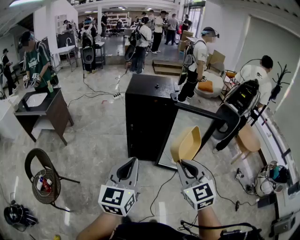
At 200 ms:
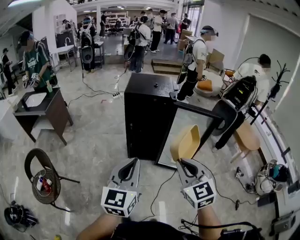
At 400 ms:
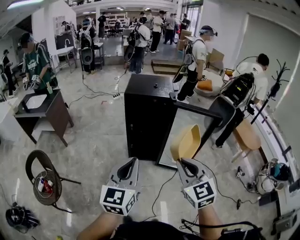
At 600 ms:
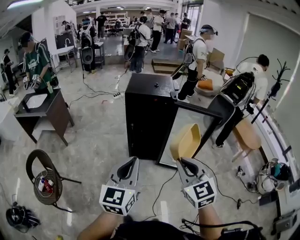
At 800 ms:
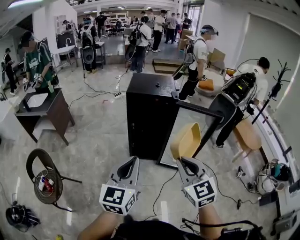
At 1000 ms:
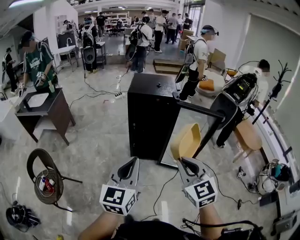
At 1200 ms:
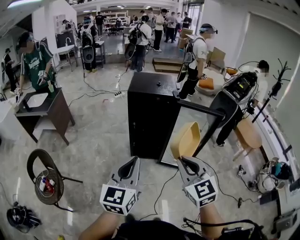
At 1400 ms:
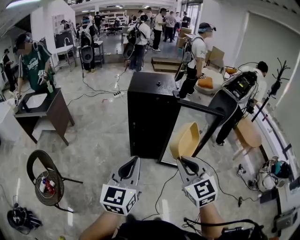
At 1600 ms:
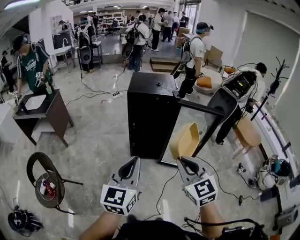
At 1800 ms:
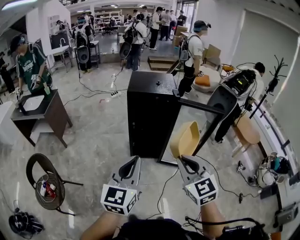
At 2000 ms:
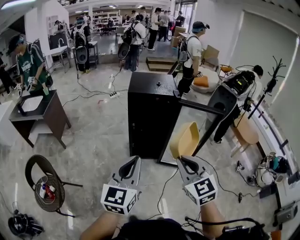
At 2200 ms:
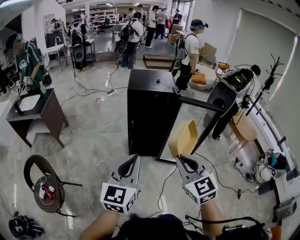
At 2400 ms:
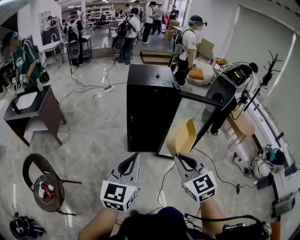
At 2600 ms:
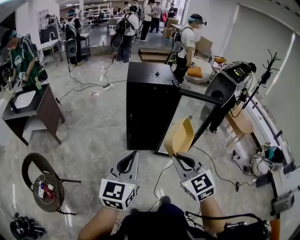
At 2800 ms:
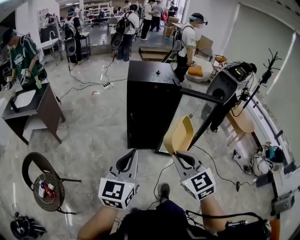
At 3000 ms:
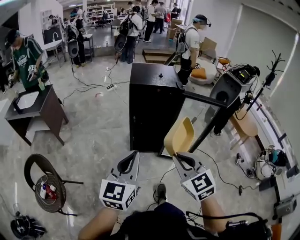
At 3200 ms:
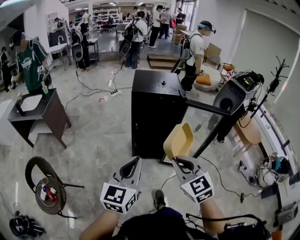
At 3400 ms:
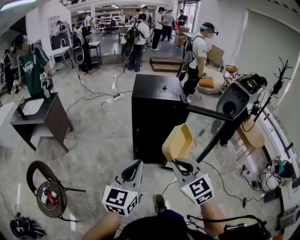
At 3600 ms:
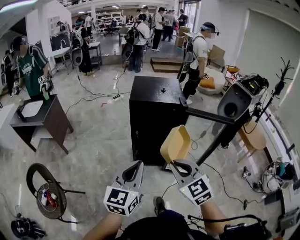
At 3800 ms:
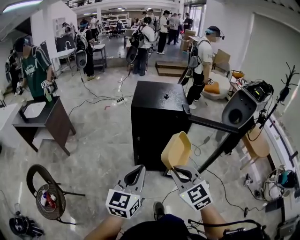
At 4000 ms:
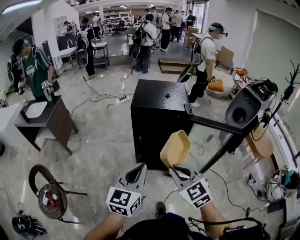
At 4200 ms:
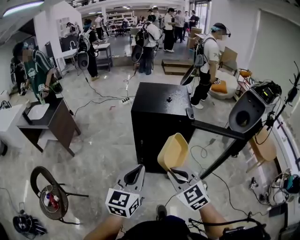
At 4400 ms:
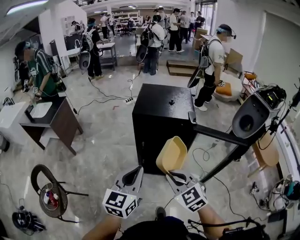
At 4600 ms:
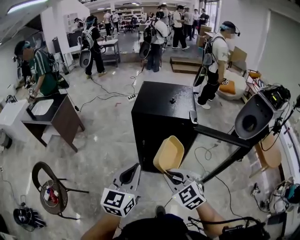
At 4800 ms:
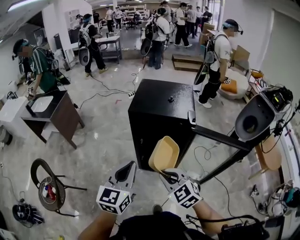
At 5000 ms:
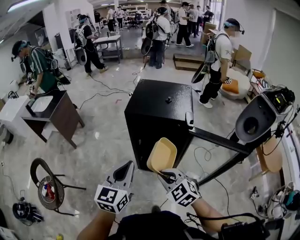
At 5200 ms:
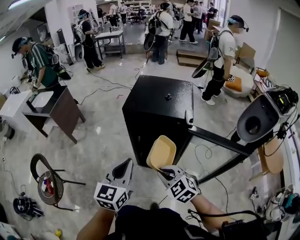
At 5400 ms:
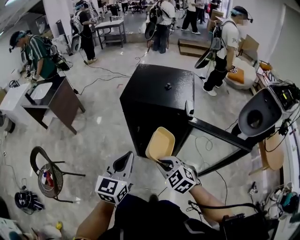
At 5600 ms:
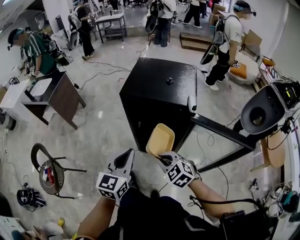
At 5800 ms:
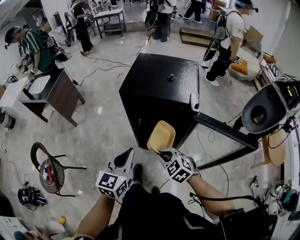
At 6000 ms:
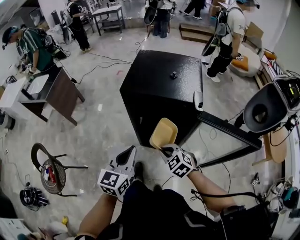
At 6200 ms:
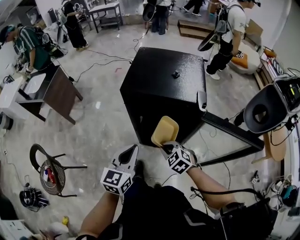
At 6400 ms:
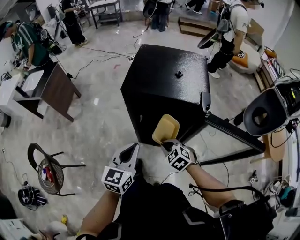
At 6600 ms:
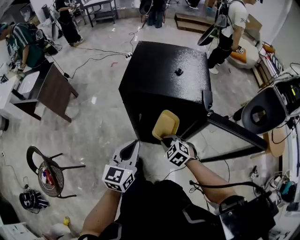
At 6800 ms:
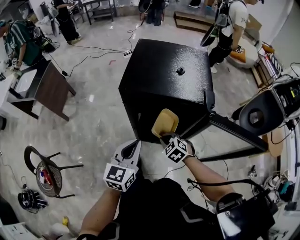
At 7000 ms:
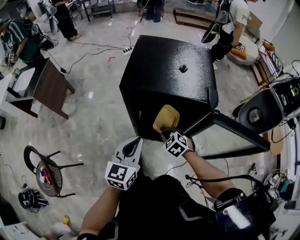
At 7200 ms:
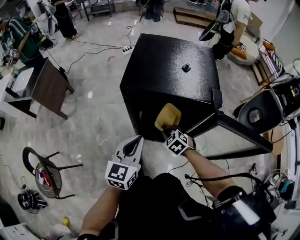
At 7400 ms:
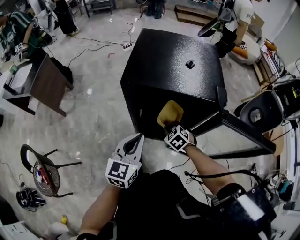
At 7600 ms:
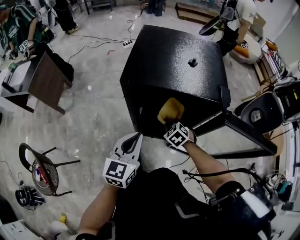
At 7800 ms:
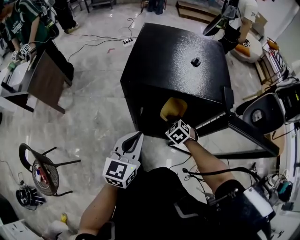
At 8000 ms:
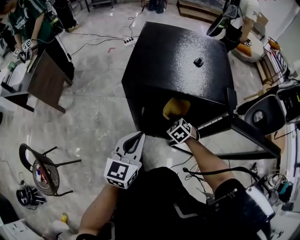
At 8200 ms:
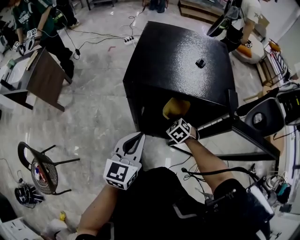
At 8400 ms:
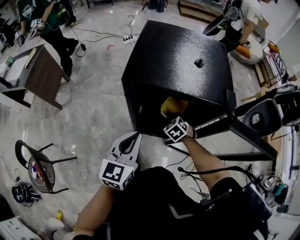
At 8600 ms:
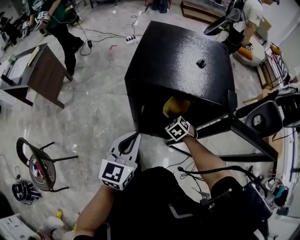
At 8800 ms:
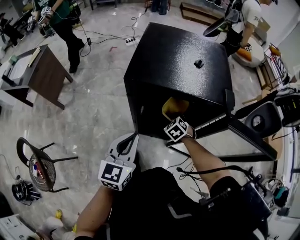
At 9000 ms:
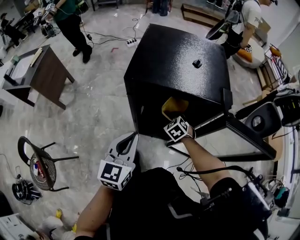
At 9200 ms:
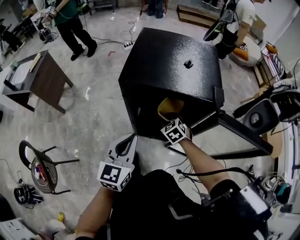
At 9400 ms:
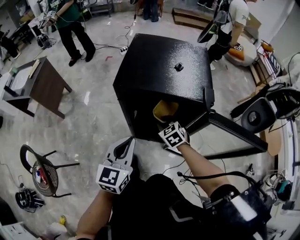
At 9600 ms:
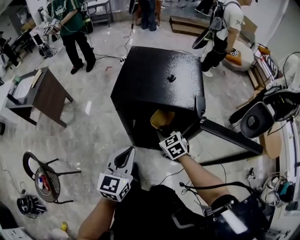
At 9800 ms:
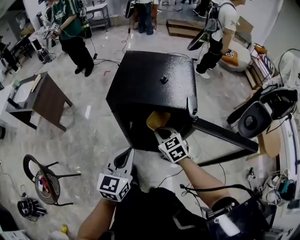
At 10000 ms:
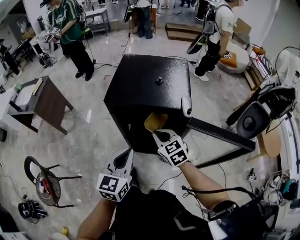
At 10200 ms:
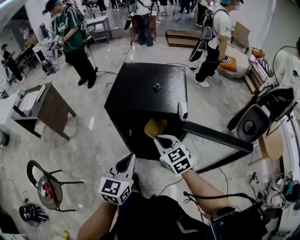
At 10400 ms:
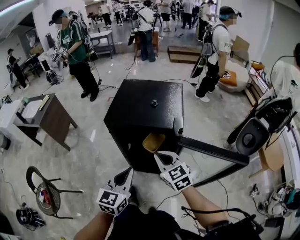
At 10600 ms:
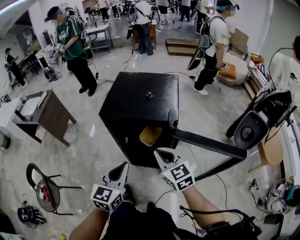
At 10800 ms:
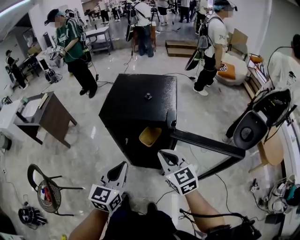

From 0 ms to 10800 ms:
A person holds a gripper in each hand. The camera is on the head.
From 0 ms to 1600 ms: The grippers stay close to where they were, moving slightly.
From 1600 ms to 3000 ms: The two grippers go some 5 cm to the left.
From 3000 ms to 4600 ms: The right gripper travels forward by approximately 20 cm, and rotates about 20 degrees, while the left gripper moves forward and to the right, approximately 20 cm.
From 4600 ms to 6200 ms: The two grippers go some 20 cm downward and forward. The right gripper changes its angle by approximately 20 degrees.
From 6200 ms to 7800 ms: The right gripper shifts roughly 20 cm forward and downward, while the left gripper heads forward and downward, covering some 10 cm.
From 7800 ms to 9200 ms: The right gripper opens.
From 9200 ms to 10800 ms: The left gripper moves upward, to the right and backward, some 15 cm. Meanwhile the right gripper is displaced upward and backward by some 30 cm, tilts its fingers about 30 degrees upward, and closes.

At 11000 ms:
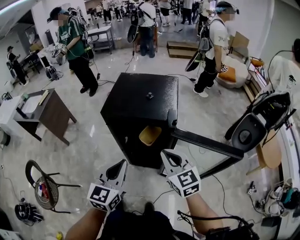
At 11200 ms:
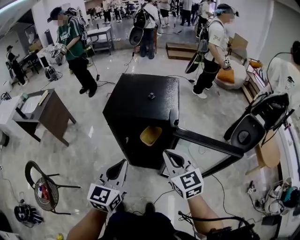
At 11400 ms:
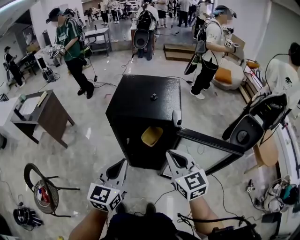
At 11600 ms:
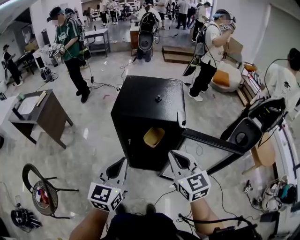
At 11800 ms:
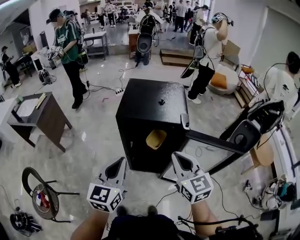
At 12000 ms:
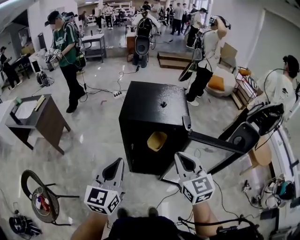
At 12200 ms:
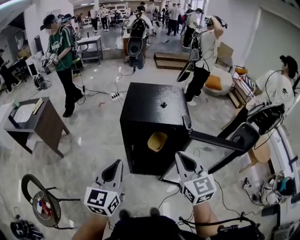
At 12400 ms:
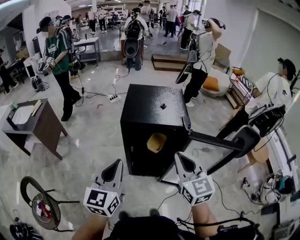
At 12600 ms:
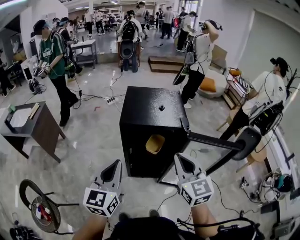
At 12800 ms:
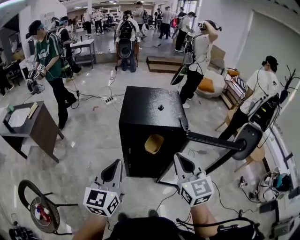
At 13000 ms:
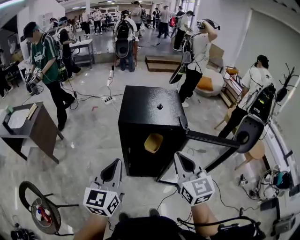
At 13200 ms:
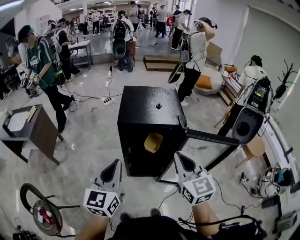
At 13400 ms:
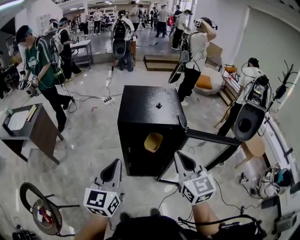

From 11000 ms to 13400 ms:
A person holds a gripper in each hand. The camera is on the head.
From 11000 ms to 12200 ms: The left gripper is displaced to the left by roughly 15 cm. The right gripper travels upward and to the left by about 10 cm.
From 12200 ms to 13400 ms: The grippers move only a little.

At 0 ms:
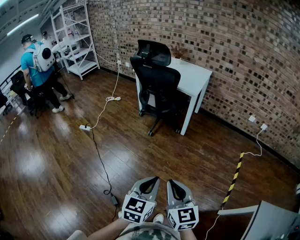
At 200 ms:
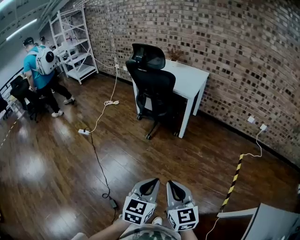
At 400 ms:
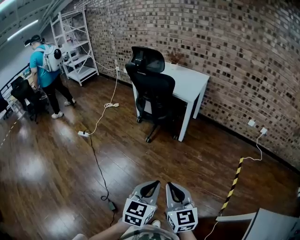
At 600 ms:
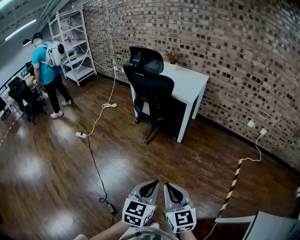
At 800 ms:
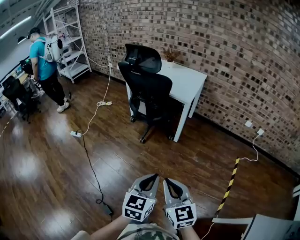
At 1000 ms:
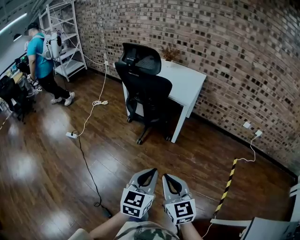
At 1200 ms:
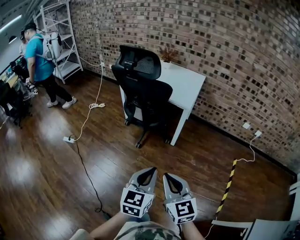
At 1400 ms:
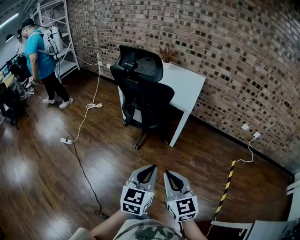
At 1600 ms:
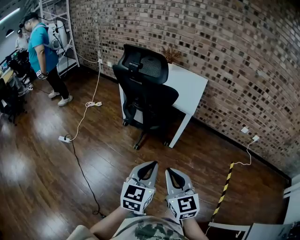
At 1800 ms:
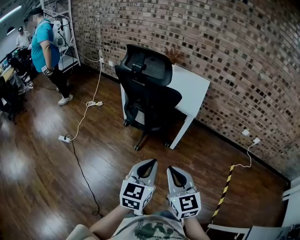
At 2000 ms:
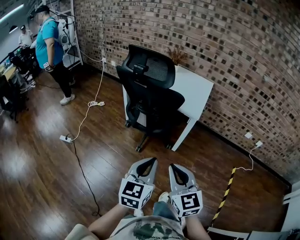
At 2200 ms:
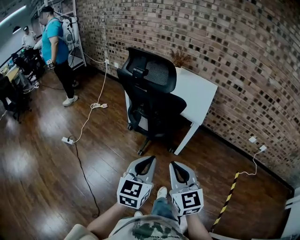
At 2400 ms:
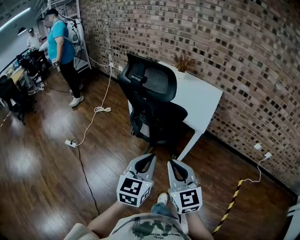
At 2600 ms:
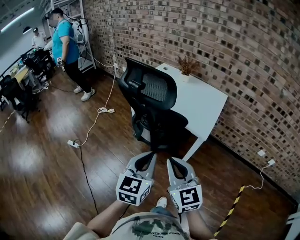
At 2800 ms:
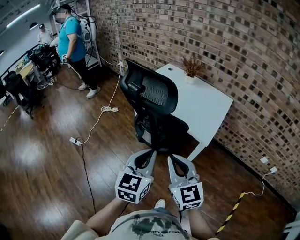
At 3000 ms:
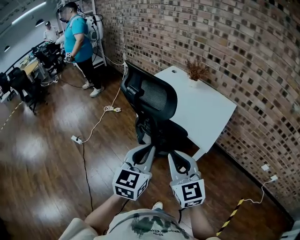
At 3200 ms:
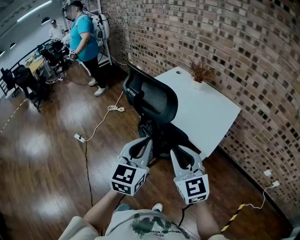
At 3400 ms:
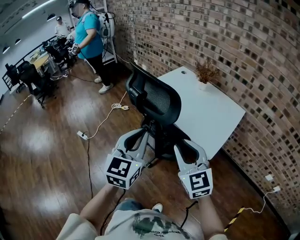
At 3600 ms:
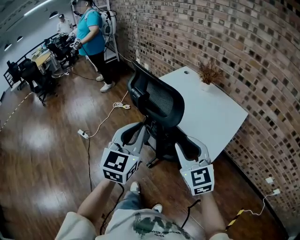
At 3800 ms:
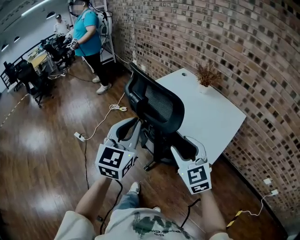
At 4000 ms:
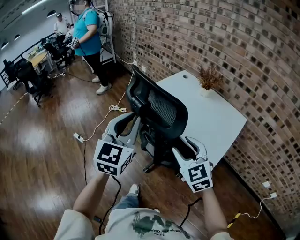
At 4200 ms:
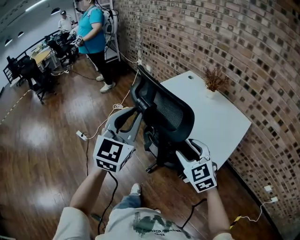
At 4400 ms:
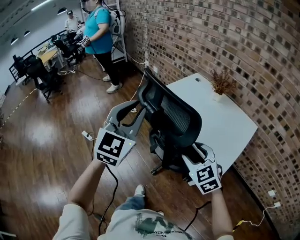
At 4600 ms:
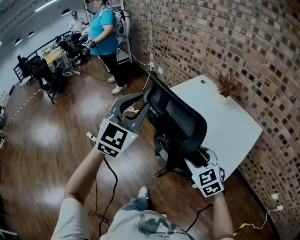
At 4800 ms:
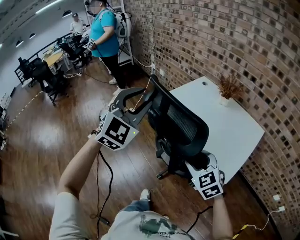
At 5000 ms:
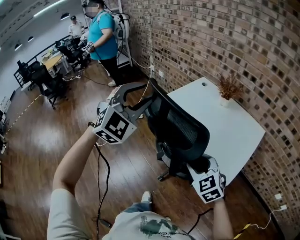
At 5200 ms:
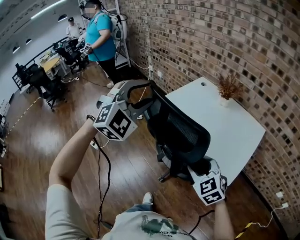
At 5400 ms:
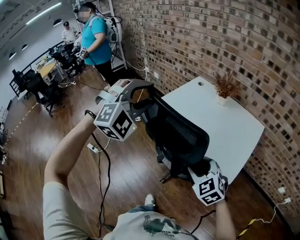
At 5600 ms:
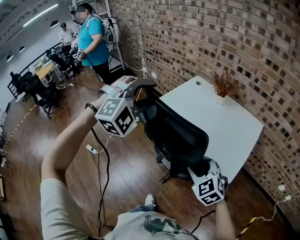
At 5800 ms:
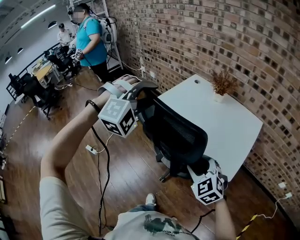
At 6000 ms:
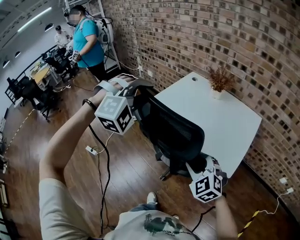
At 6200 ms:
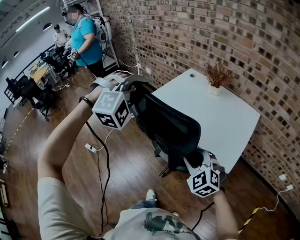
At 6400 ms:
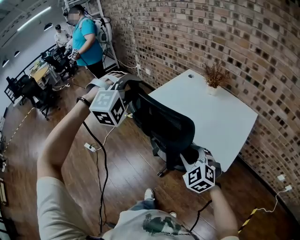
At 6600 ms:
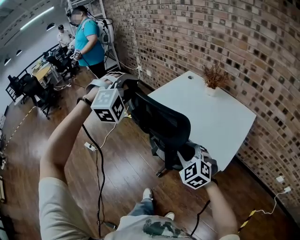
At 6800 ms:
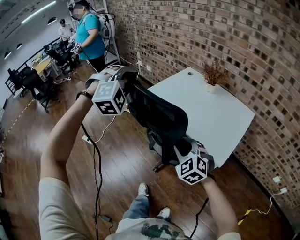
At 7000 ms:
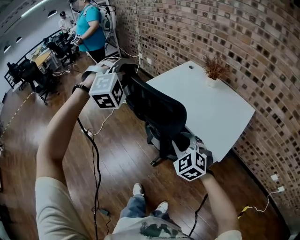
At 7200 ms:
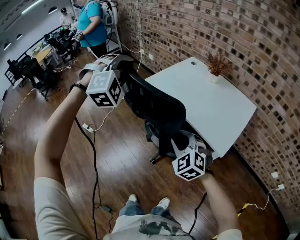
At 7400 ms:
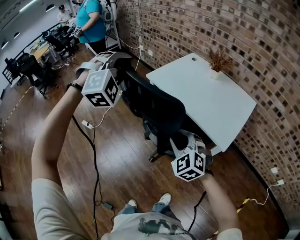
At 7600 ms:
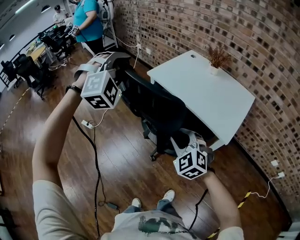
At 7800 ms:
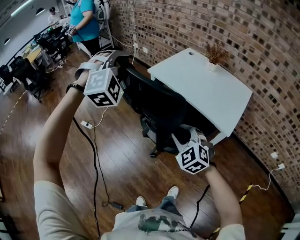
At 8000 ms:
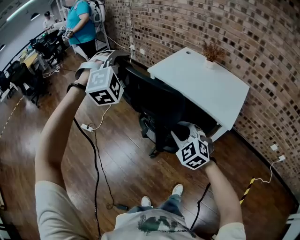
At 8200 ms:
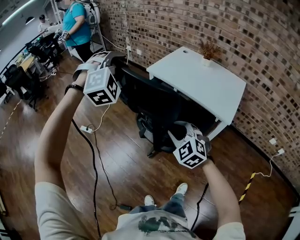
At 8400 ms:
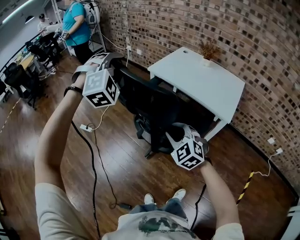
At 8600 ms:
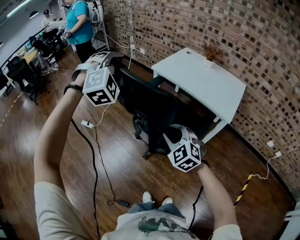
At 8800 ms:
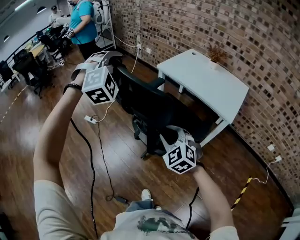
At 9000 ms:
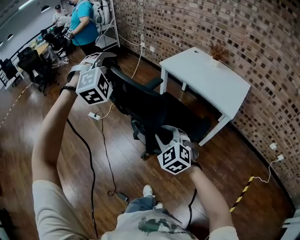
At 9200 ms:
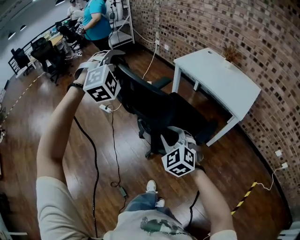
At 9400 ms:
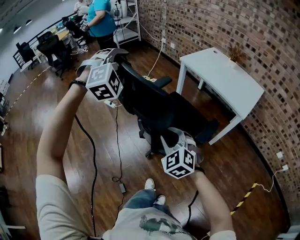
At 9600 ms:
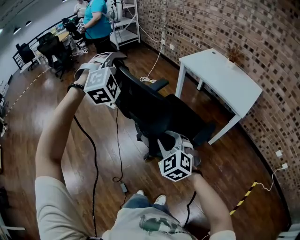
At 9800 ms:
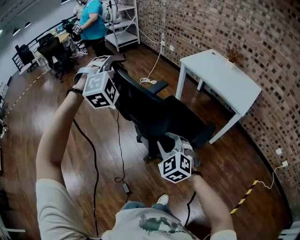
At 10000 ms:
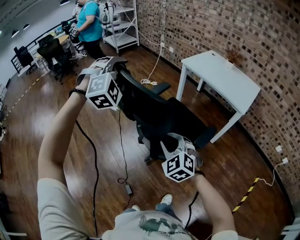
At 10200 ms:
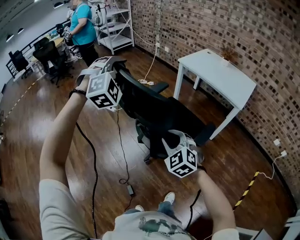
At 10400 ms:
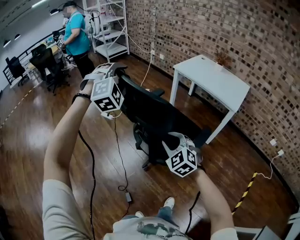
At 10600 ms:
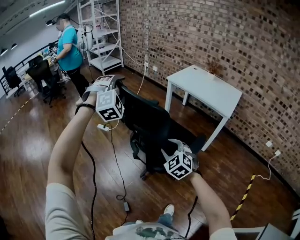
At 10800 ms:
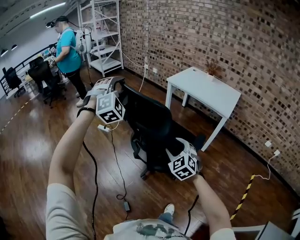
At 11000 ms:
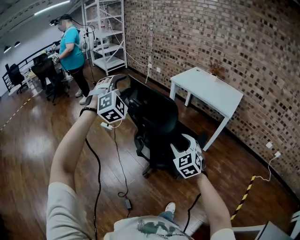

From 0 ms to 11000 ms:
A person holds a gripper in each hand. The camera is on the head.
From 0 ms to 1600 ms: Both grippers travel together forward, roughly 30 cm.
From 1600 ms to 3200 ms: The grippers both shift forward by about 35 cm. The left gripper turns by approximately 20 degrees; the right gripper rotates about 20 degrees.
From 3200 ms to 4800 ms: The right gripper is displaced forward and downward by about 15 cm, rotates roughly 30 degrees, and opens up; the left gripper goes some 25 cm forward, upward and to the left, rolls clockwise, seen from behind, by approximately 40 degrees, and opens.
From 4800 ms to 6200 ms: The left gripper heads forward, covering approximately 5 cm, and rolls clockwise, seen from behind, by about 40 degrees.
From 6200 ms to 7800 ms: Both grippers move to the left and backward, approximately 15 cm.
From 7800 ms to 9400 ms: The left gripper heads to the left and backward, covering roughly 30 cm. Meanwhile the right gripper is displaced backward and to the left by approximately 30 cm.
From 9400 ms to 11000 ms: The right gripper heads backward and to the left, covering roughly 10 cm, and opens its fingers. Meanwhile the left gripper is displaced backward and to the left by approximately 15 cm.
